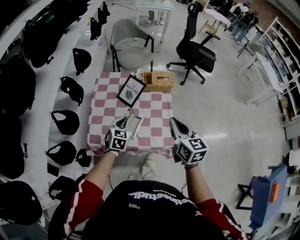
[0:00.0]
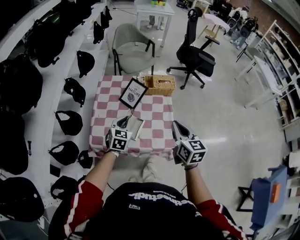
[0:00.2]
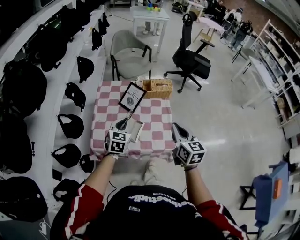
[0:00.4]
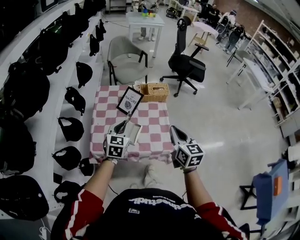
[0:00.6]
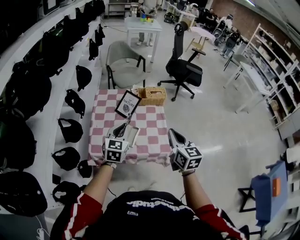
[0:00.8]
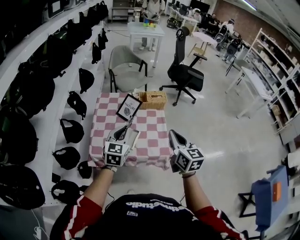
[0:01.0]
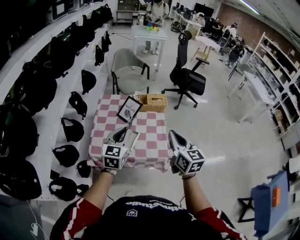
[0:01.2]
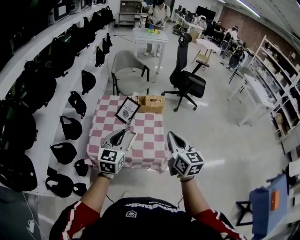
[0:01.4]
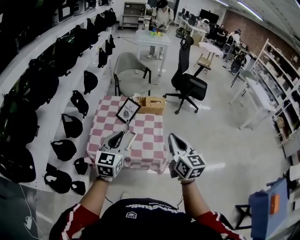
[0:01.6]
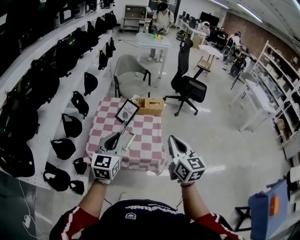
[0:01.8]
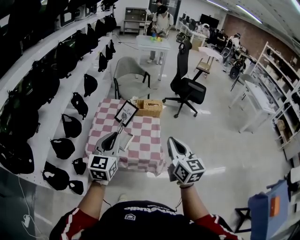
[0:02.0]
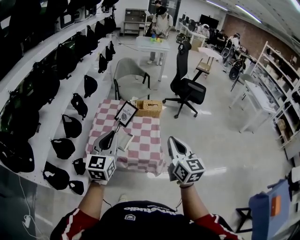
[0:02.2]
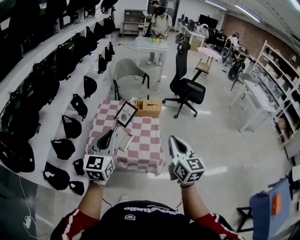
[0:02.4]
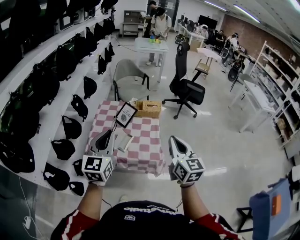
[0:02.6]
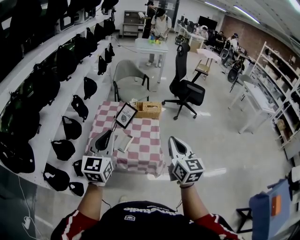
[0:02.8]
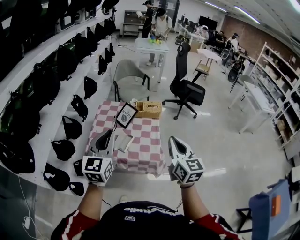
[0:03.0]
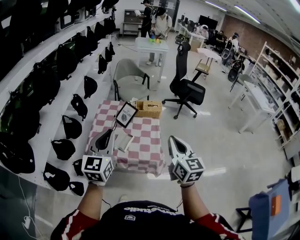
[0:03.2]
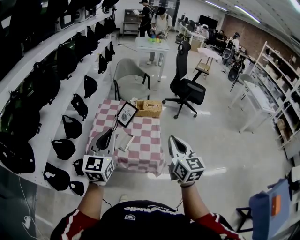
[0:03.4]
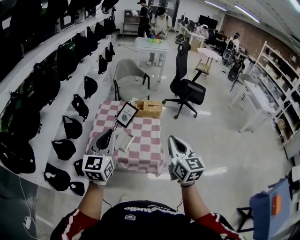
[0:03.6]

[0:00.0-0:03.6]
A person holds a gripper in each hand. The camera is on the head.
0:00.0 to 0:01.8: The right gripper travels backward, upward and to the right by roughly 20 cm. The left gripper travels upward and backward by some 30 cm, and turns by approximately 30 degrees.
0:01.8 to 0:03.6: The left gripper travels upward by some 5 cm.

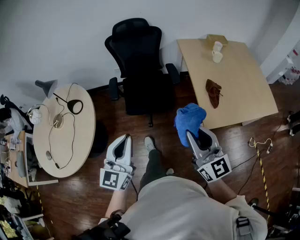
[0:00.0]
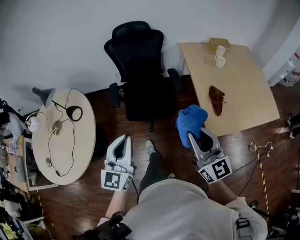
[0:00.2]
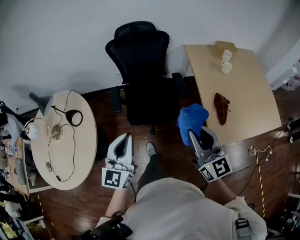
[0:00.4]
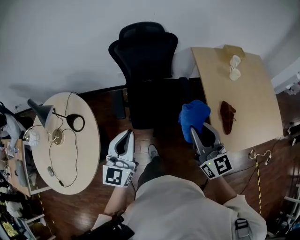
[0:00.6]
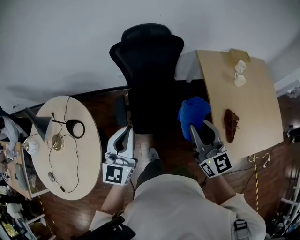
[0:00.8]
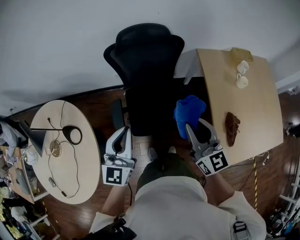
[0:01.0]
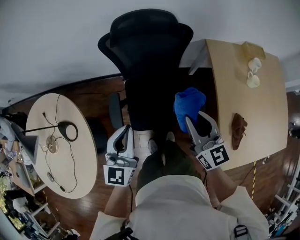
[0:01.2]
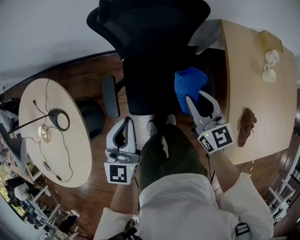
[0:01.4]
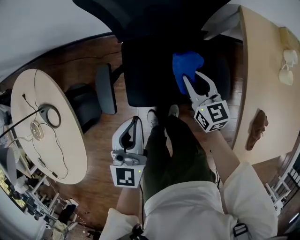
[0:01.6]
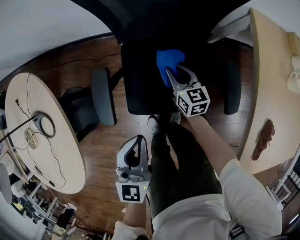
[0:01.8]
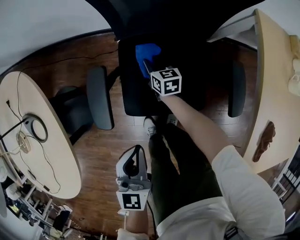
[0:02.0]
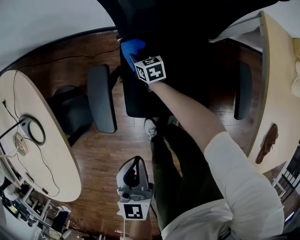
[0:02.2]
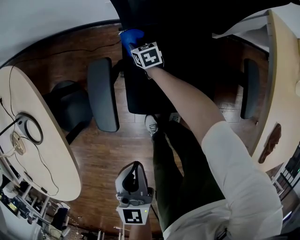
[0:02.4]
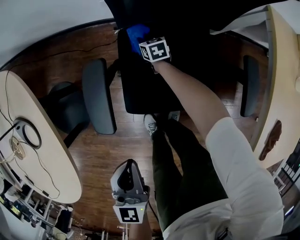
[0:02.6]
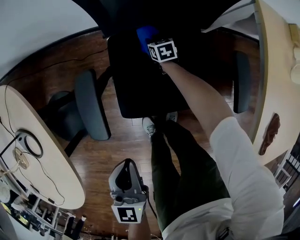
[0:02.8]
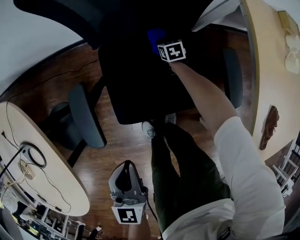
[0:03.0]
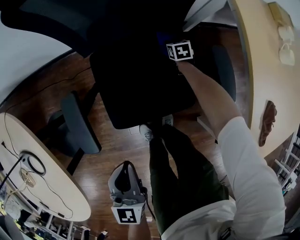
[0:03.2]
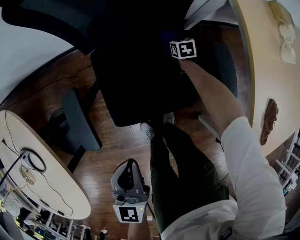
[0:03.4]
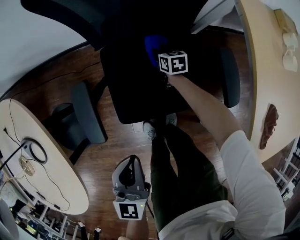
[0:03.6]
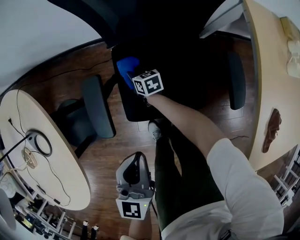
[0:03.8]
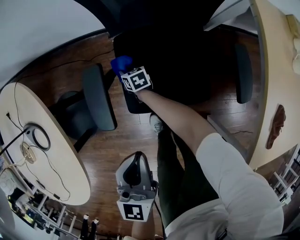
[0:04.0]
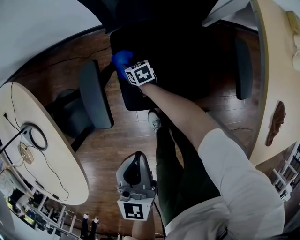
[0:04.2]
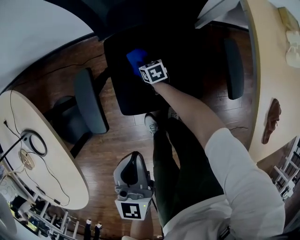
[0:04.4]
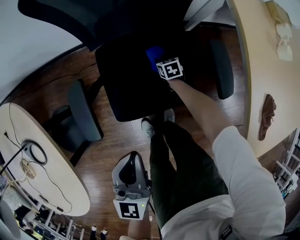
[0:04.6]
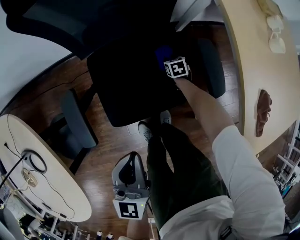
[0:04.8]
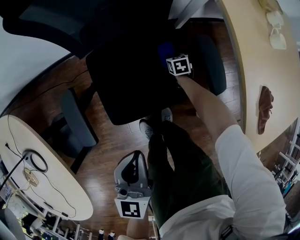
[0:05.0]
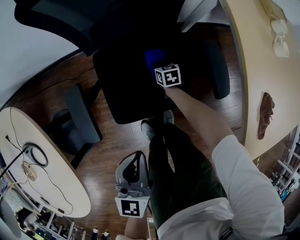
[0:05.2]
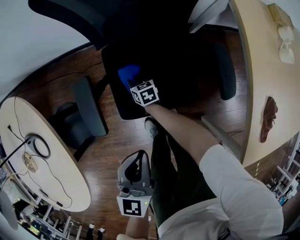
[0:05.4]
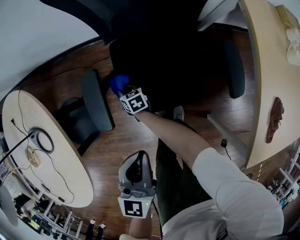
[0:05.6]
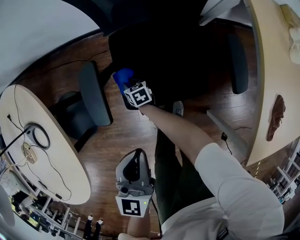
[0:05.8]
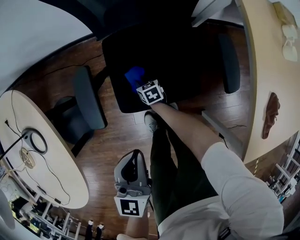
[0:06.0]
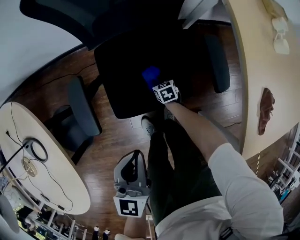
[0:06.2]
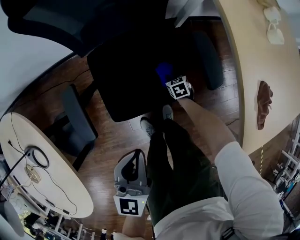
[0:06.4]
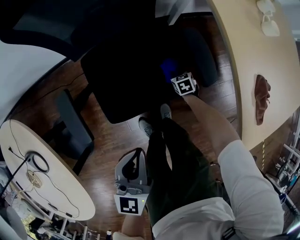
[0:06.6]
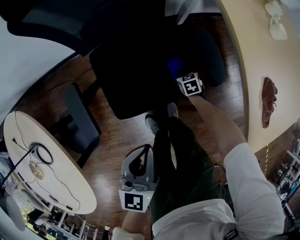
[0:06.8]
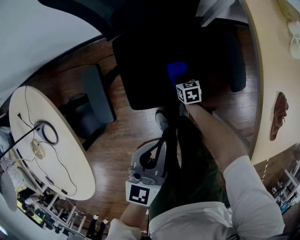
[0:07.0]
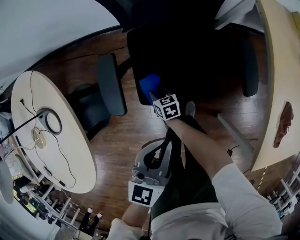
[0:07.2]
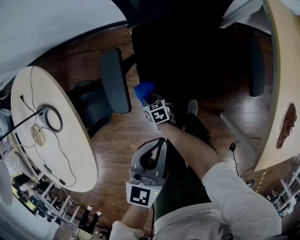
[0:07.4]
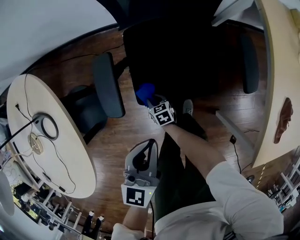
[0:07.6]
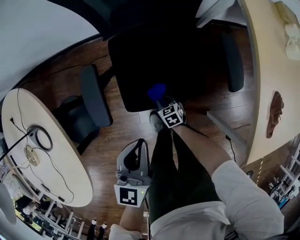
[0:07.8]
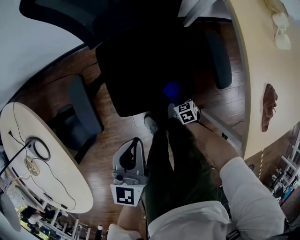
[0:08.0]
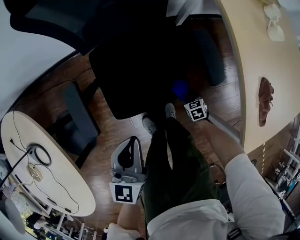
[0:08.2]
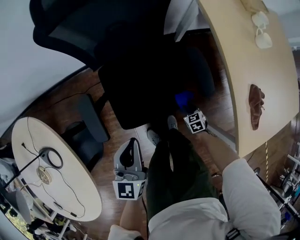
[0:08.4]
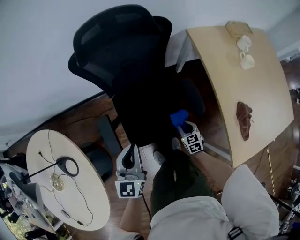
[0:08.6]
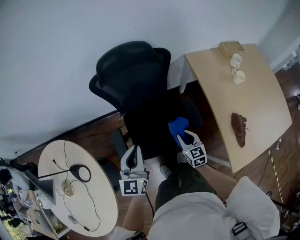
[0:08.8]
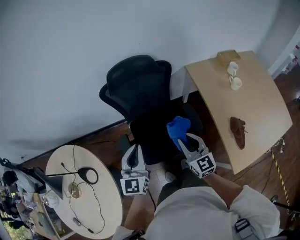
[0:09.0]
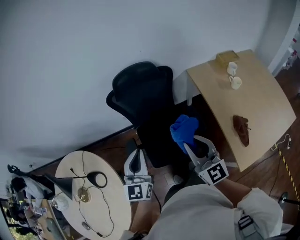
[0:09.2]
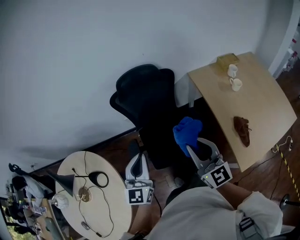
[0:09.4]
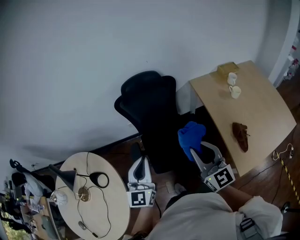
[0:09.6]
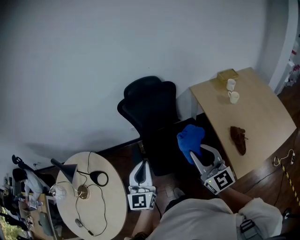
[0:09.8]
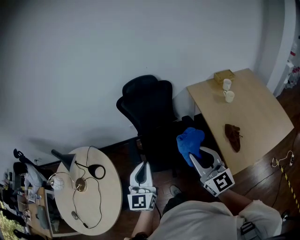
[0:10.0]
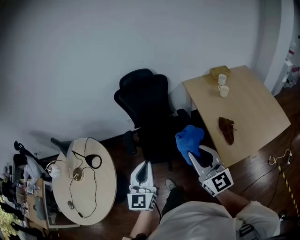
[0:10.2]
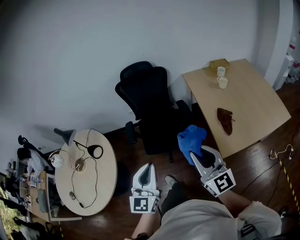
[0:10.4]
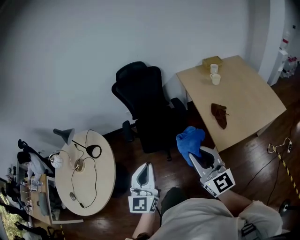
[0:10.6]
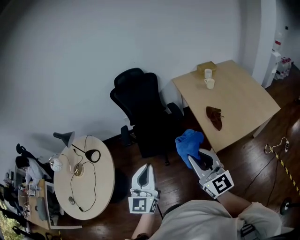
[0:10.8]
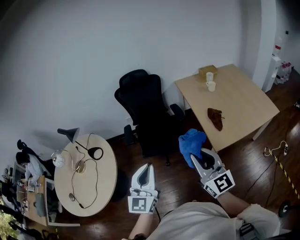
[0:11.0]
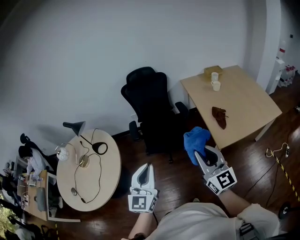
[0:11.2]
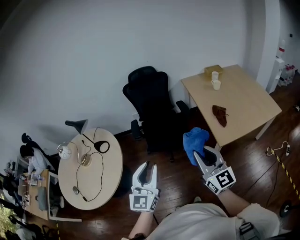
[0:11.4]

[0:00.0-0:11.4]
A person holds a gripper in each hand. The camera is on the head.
0:00.0 to 0:01.4: The pair of grippers is taken forward, about 70 cm. The right gripper rotates approximately 30 degrees.
0:01.4 to 0:02.8: The left gripper shifts roughly 30 cm downward; the right gripper is displaced downward by some 60 cm, and tips its fingers downward by some 40 degrees.
0:02.8 to 0:04.2: The right gripper shifts some 20 cm to the left and backward.
0:04.2 to 0:05.6: The left gripper goes to the right and returns, some 10 cm each way. Meanwhile the right gripper moves backward, roughly 10 cm, and travels to the right and back again, about 35 cm each way.
0:05.6 to 0:07.2: The right gripper travels backward by roughly 5 cm, and reaches some 40 cm to the right, then returns, while the left gripper moves roughly 10 cm to the right and comes back.
0:07.2 to 0:08.6: The right gripper goes left and right, about 40 cm each way, reversing 2 times, and changes its angle by roughly 30 degrees, while the left gripper travels upward by approximately 15 cm.
0:08.6 to 0:10.0: The pair of grippers is taken backward, about 40 cm. The left gripper is displaced upward by approximately 20 cm, and swivels approximately 20 degrees. The right gripper goes approximately 60 cm upward, and tips its fingers upward by roughly 60 degrees.
0:10.0 to 0:11.4: The two grippers go roughly 35 cm backward. The left gripper opens up.

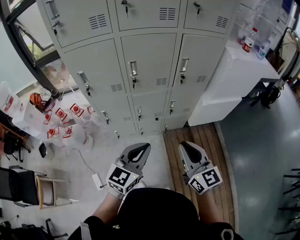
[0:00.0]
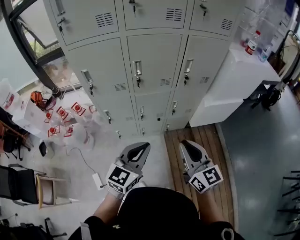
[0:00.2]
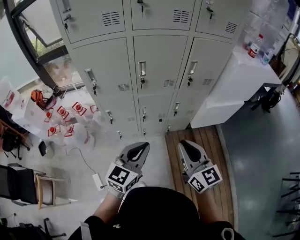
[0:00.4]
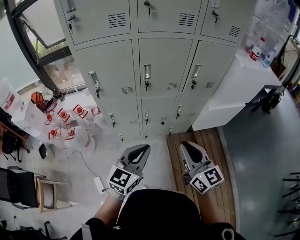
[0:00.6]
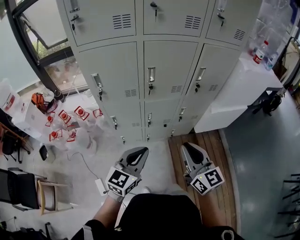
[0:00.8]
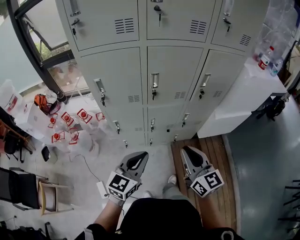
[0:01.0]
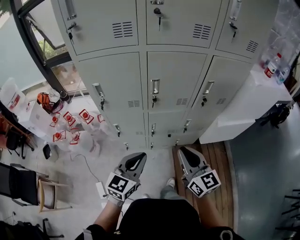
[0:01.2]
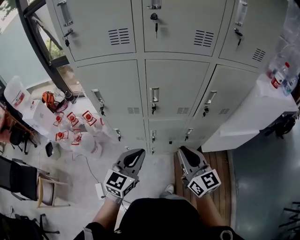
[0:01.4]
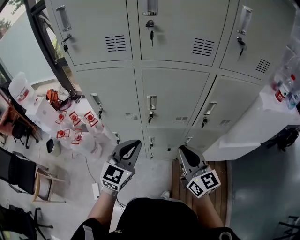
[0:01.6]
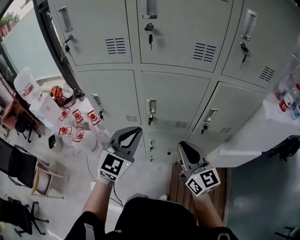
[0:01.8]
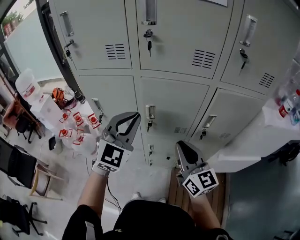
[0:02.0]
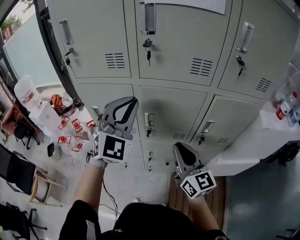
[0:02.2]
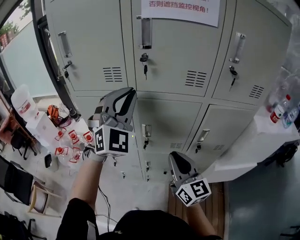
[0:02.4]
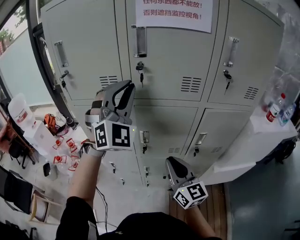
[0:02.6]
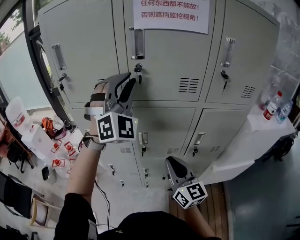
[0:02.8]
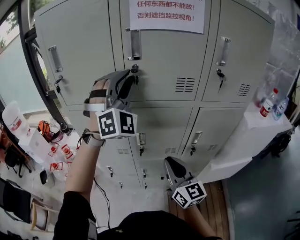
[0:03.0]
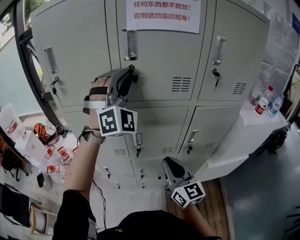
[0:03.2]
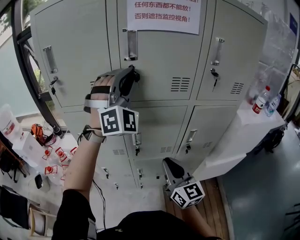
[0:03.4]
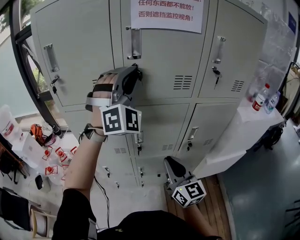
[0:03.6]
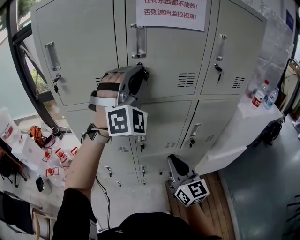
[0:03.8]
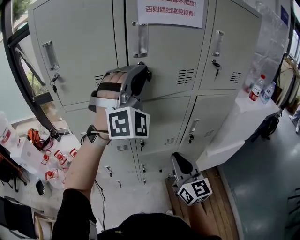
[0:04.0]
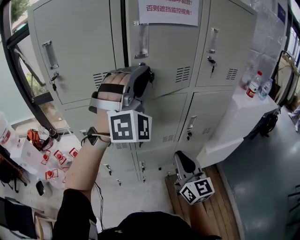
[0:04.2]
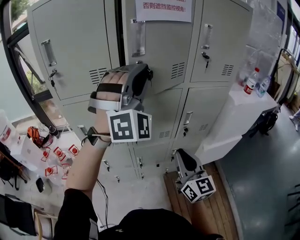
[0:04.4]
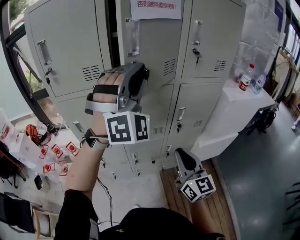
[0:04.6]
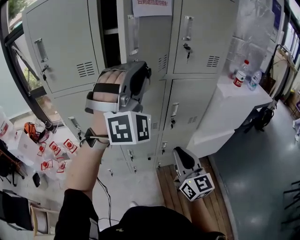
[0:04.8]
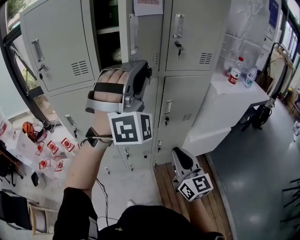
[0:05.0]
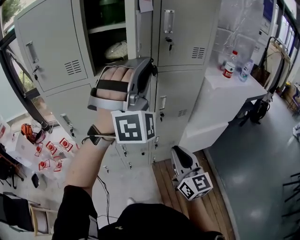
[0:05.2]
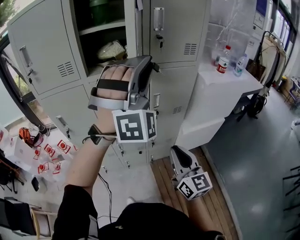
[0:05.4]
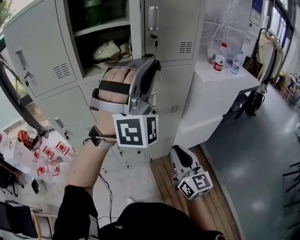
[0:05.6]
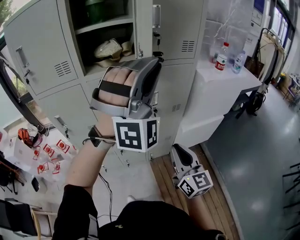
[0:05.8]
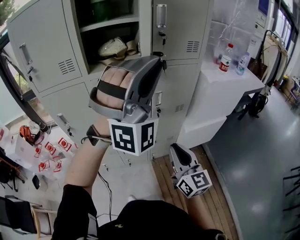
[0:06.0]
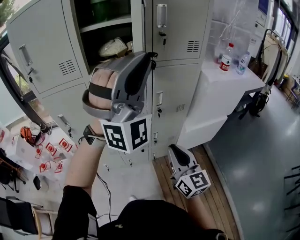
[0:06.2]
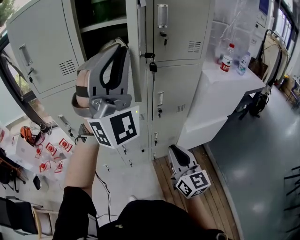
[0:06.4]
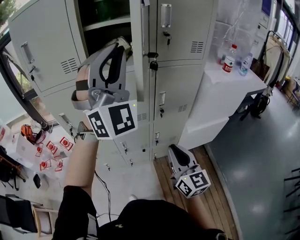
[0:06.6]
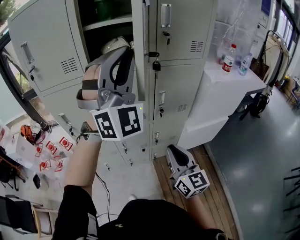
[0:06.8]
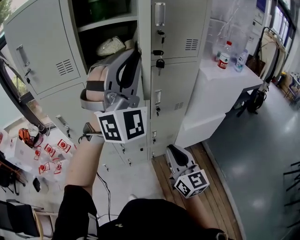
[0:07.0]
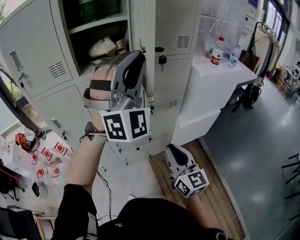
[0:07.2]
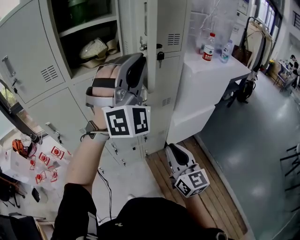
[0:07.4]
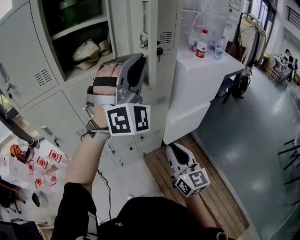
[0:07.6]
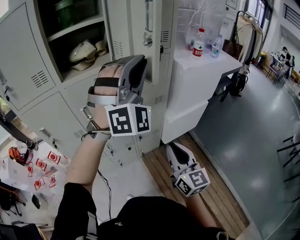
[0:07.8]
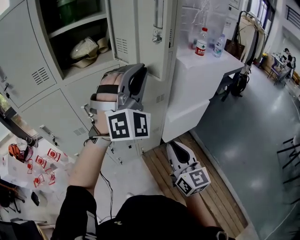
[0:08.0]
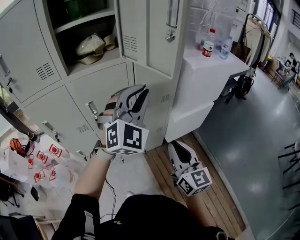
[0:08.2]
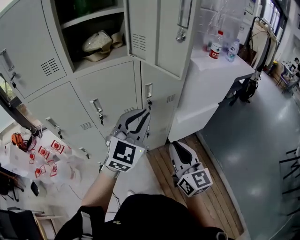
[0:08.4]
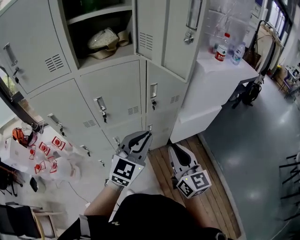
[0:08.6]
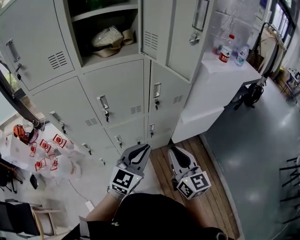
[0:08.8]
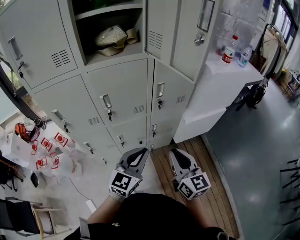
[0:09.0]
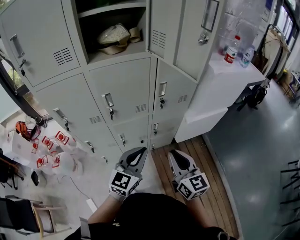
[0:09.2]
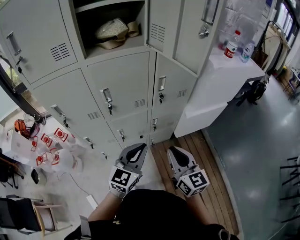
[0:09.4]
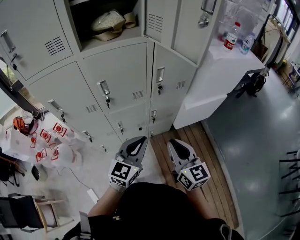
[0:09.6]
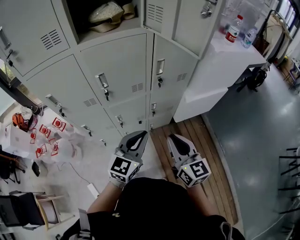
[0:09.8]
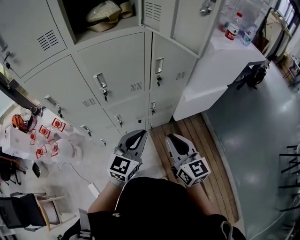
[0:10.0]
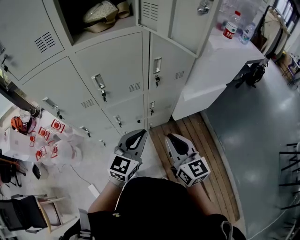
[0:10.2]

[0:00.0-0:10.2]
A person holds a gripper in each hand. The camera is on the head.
0:00.0 to 0:01.4: Both grippers move forward and to the left, roughly 15 cm.
0:01.4 to 0:03.0: The right gripper is displaced forward and upward by approximately 15 cm; the left gripper moves upward and forward, about 40 cm, and rolls clockwise, seen from behind, by approximately 70 degrees.
0:03.0 to 0:04.4: The right gripper travels backward by roughly 5 cm; the left gripper goes roughly 10 cm backward and to the right.
0:04.4 to 0:05.8: The grippers both shift to the right and backward by some 20 cm.
0:05.8 to 0:07.2: The left gripper goes to the left and returns, roughly 10 cm each way.
0:07.2 to 0:08.8: The left gripper moves downward, approximately 35 cm, and rotates around the line of its fingers by about 70 degrees, counterclockwise from behind.
0:08.8 to 0:10.2: The right gripper changes place by some 5 cm. The left gripper is displaced downward by some 5 cm.
